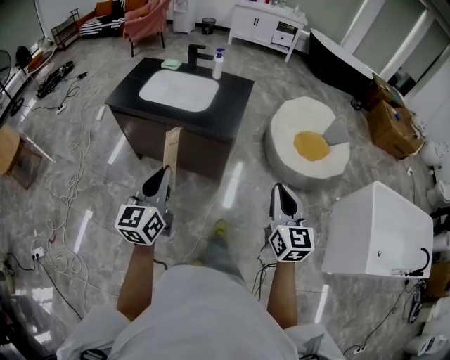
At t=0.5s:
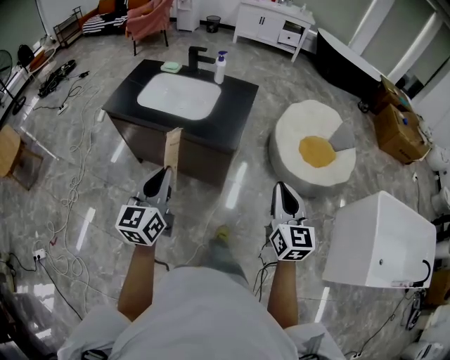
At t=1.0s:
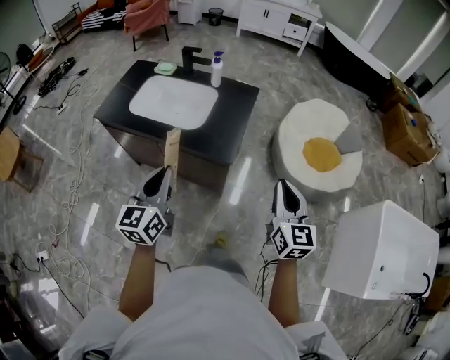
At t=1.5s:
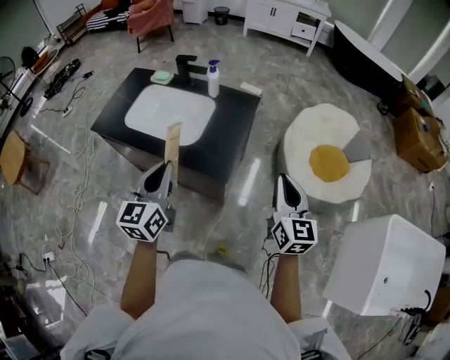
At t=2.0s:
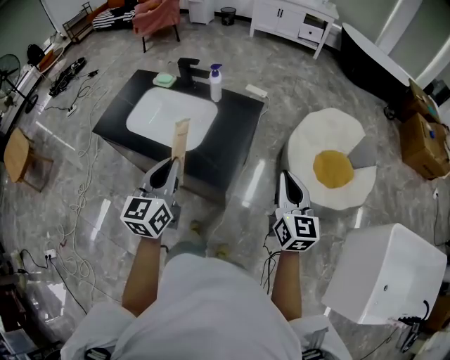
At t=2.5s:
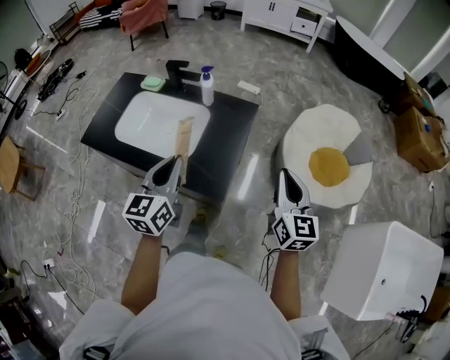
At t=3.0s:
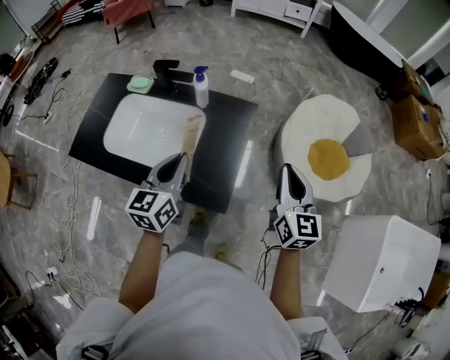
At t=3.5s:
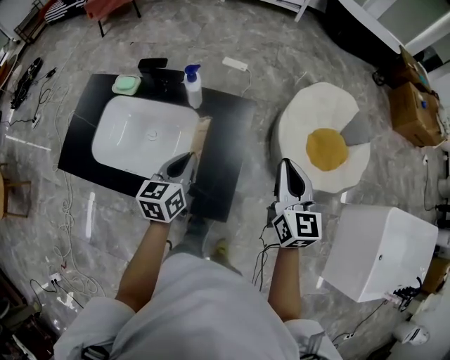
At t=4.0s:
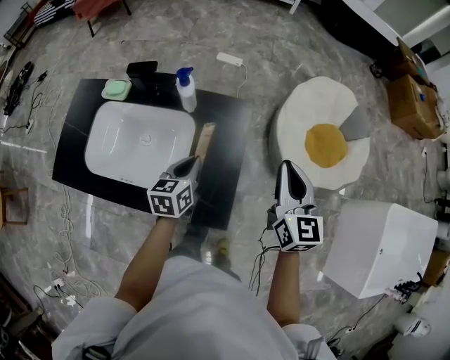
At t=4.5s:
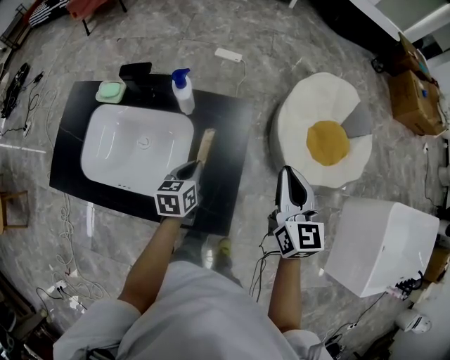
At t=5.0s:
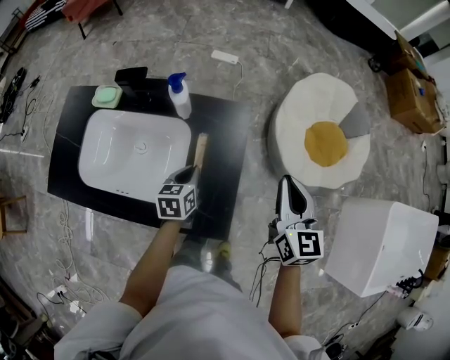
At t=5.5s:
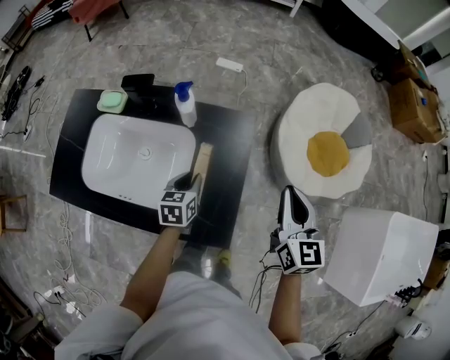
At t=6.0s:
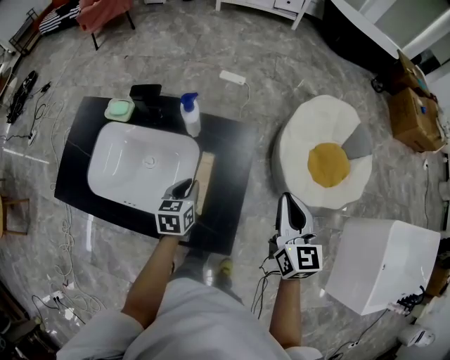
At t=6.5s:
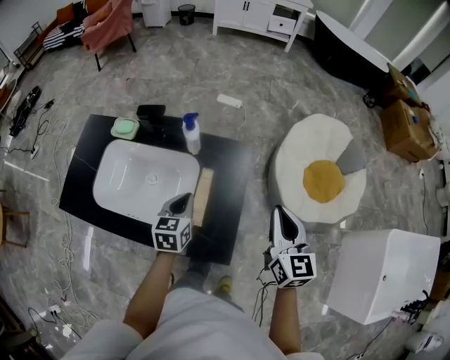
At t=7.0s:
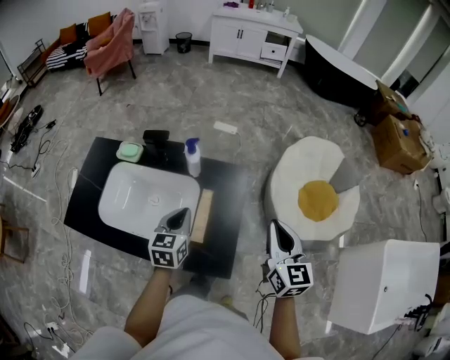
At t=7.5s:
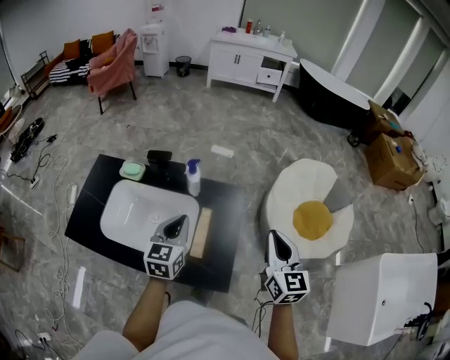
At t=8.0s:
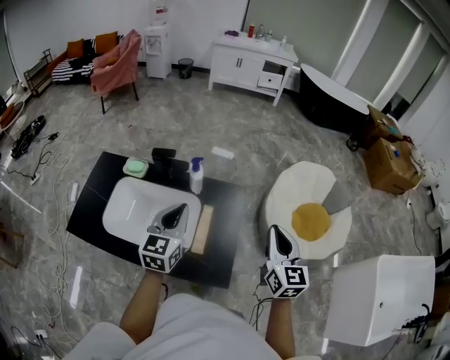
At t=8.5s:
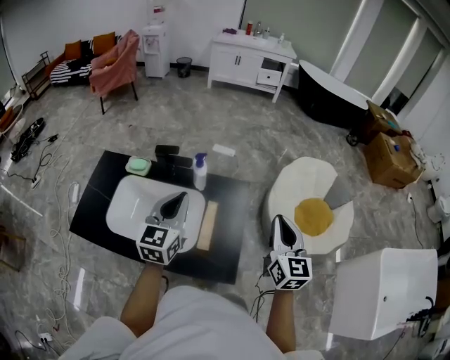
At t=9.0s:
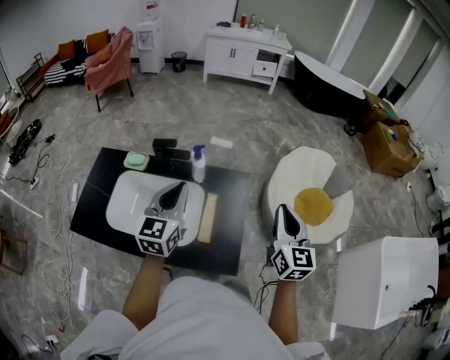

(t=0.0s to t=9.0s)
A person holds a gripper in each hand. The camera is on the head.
t=0.0s - t=2.0s: Both grippers move forward, approximately 40 cm.
t=2.0s - t=4.5s: The left gripper shifts roughly 40 cm forward and downward, and tilts its fingers about 30 degrees downward. The right gripper shifts some 25 cm forward.
t=4.5s - t=7.0s: The left gripper is displaced upward by roughly 15 cm, while the right gripper moves upward and backward, some 10 cm.
t=7.0s - t=9.0s: The left gripper shifts about 15 cm upward, and changes its angle by approximately 20 degrees. Meanwhile the right gripper travels upward by some 5 cm.

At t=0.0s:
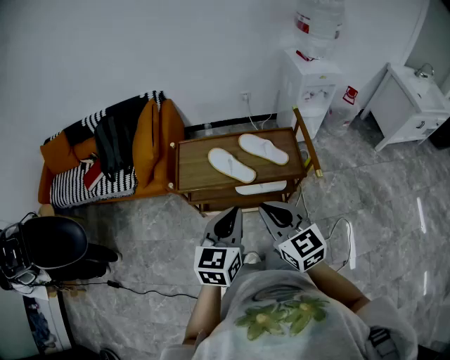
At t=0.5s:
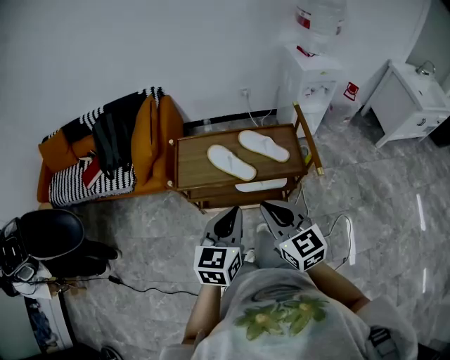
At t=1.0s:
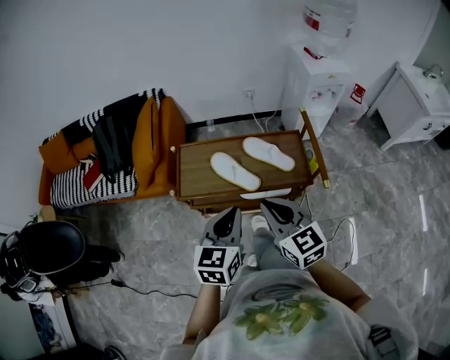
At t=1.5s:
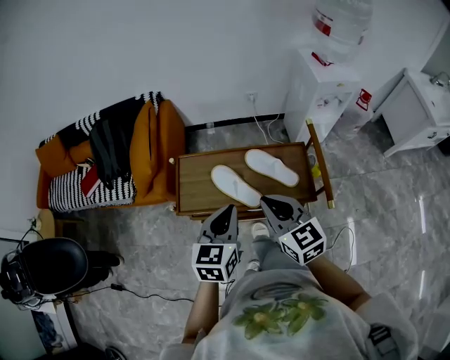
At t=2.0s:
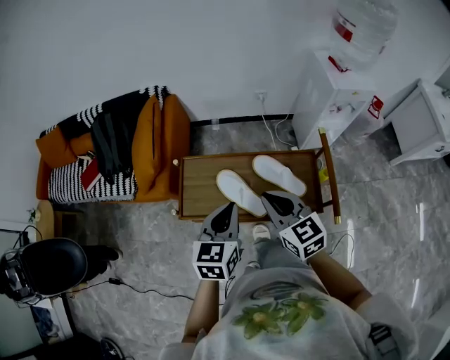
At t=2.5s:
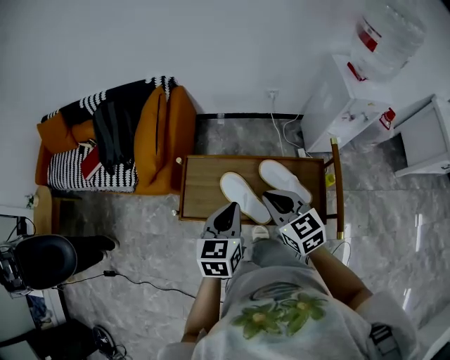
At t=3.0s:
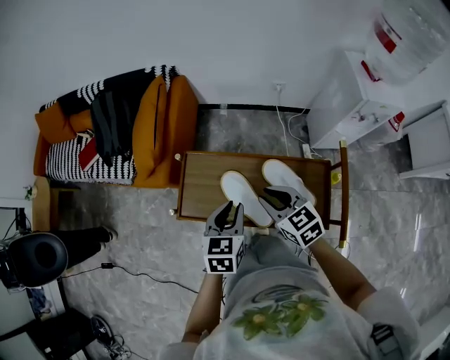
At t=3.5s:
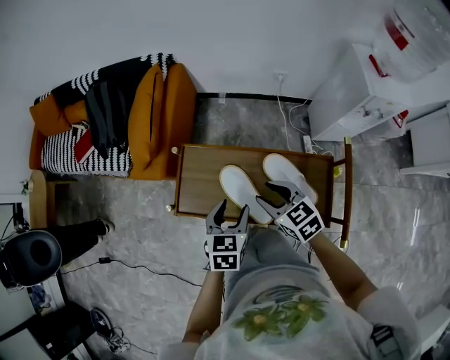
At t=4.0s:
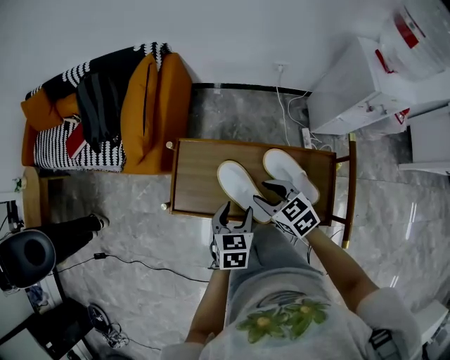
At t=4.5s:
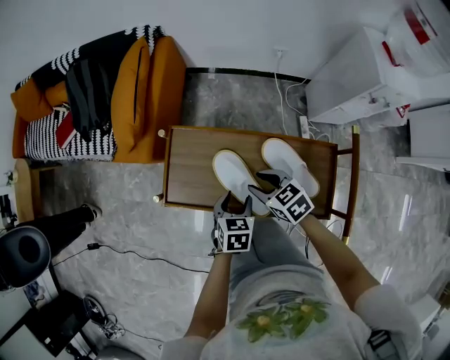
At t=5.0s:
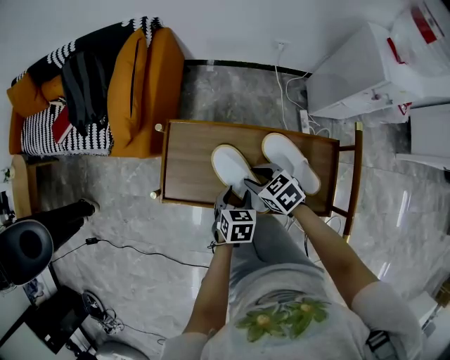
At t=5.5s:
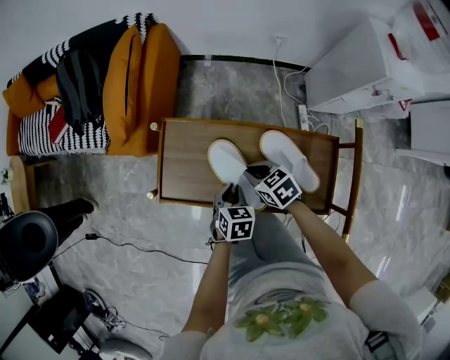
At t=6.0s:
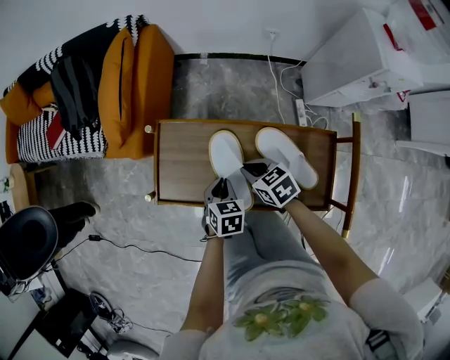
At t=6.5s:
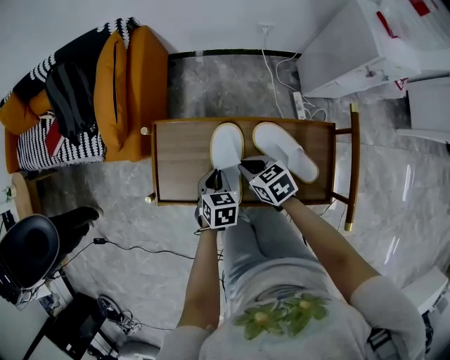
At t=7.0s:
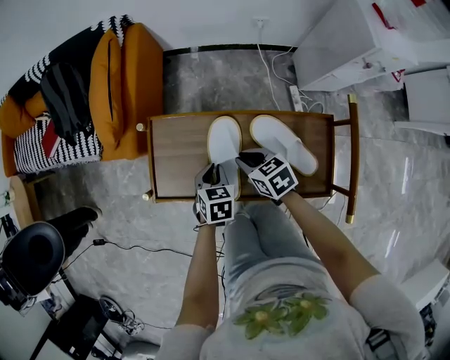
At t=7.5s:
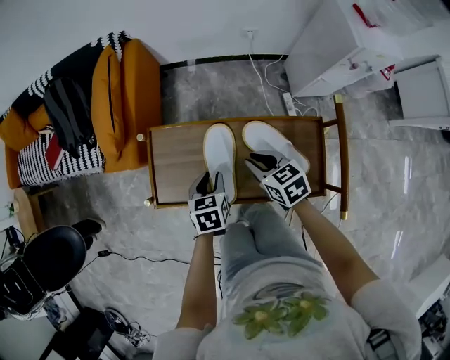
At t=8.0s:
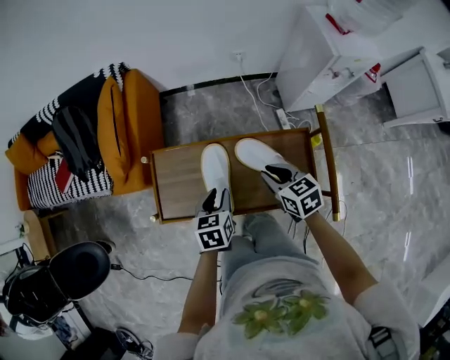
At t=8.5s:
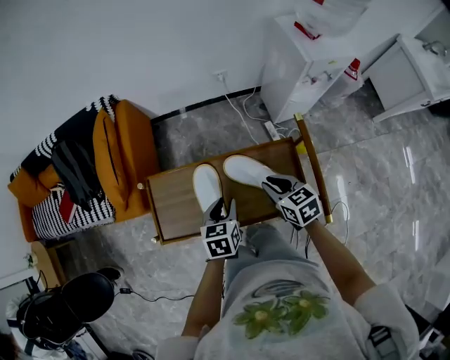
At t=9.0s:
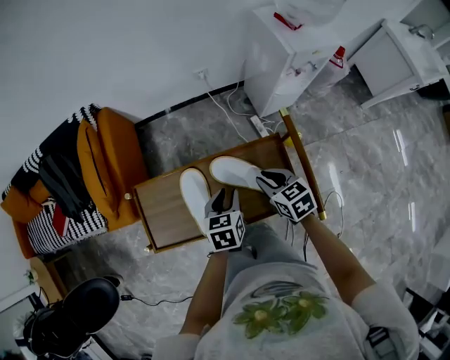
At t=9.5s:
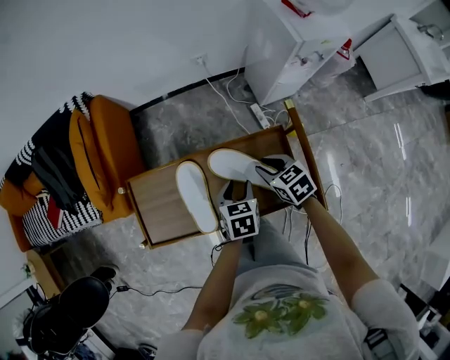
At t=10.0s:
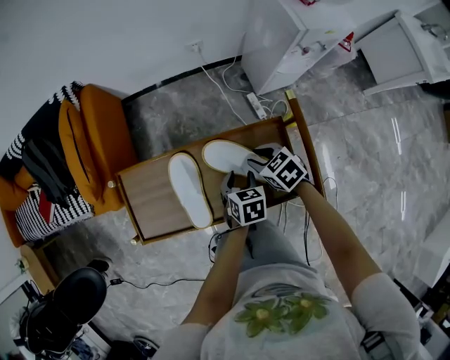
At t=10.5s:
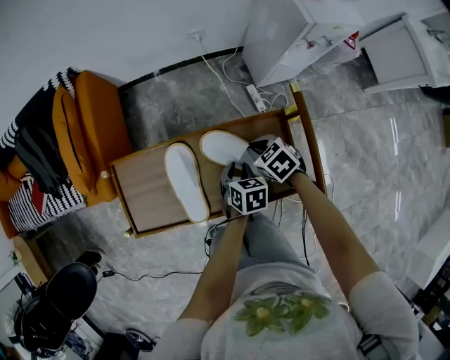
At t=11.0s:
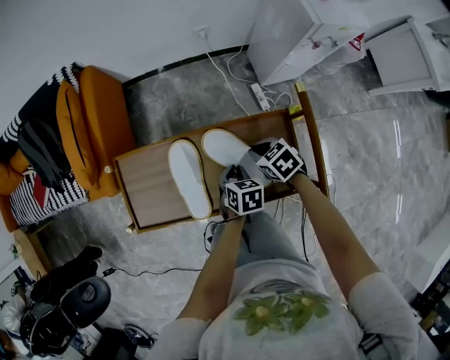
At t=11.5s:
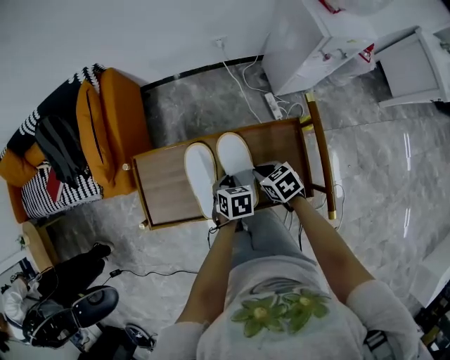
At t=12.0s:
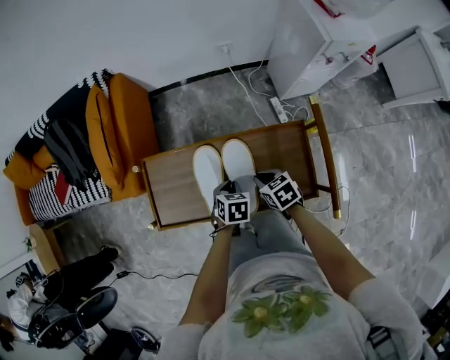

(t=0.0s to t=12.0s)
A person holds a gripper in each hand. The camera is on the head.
t=0.0s - t=2.0s: The two grippers go roughly 20 cm forward.
t=2.0s - t=4.0s: Both grippers move downward, about 20 cm. The left gripper changes its angle by approximately 20 degrees, and opens up. The right gripper swivels approximately 30 degrees, and opens up.
t=4.0s - t=6.0s: Both grippers travel together downward, about 10 cm. The left gripper closes. The right gripper closes up.
t=6.0s - t=8.0s: The left gripper moves upward, some 10 cm, and opens its fingers. The right gripper heads to the right and upward, covering some 15 cm, and changes its angle by approximately 20 degrees.
t=8.0s - t=10.0s: The left gripper travels to the right and downward by about 20 cm. Meanwhile the right gripper shifts about 10 cm downward and to the right.
t=10.0s - t=12.0s: The grippers both shift to the left by approximately 10 cm. The left gripper closes up. Meanwhile the right gripper closes up.

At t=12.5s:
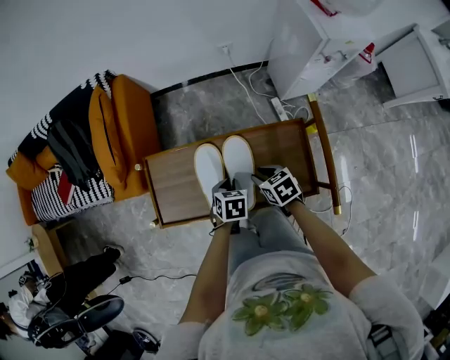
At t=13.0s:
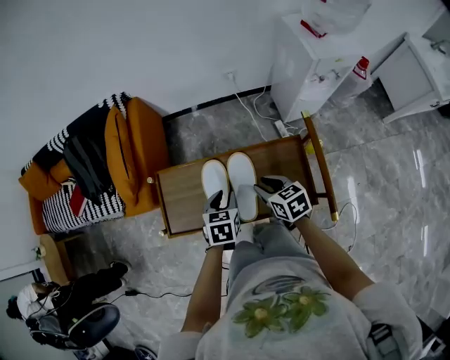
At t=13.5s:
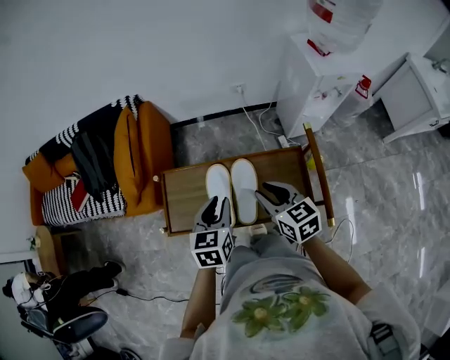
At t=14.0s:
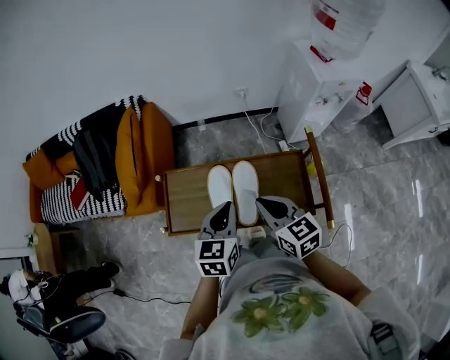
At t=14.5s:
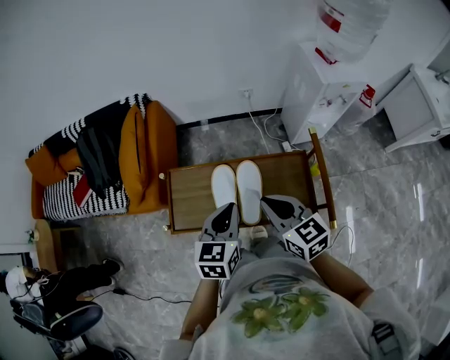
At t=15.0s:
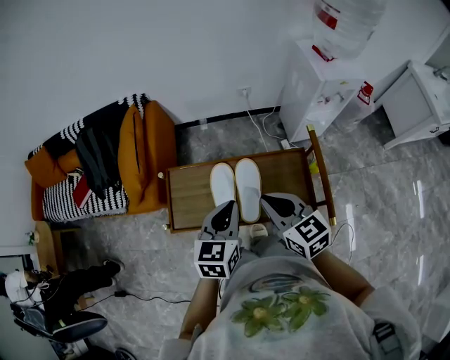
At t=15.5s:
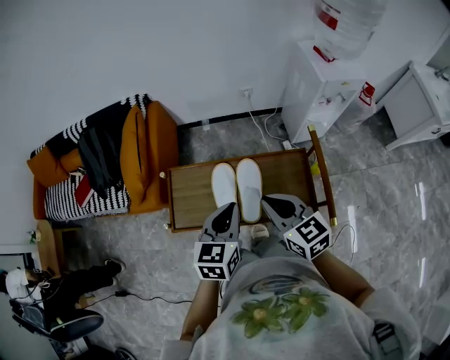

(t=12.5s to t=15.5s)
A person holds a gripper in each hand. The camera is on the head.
t=12.5s - t=14.0s: Both grippers travel together upward, about 25 cm. The right gripper angles its fingers upward, by about 30 degrees, and closes, while the left gripper tips its fingers upward by some 40 degrees.
t=14.0s - t=15.5s: The grippers make only small movements.

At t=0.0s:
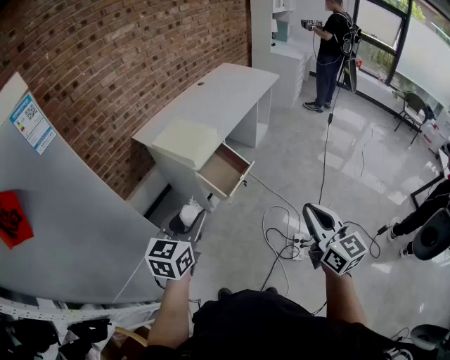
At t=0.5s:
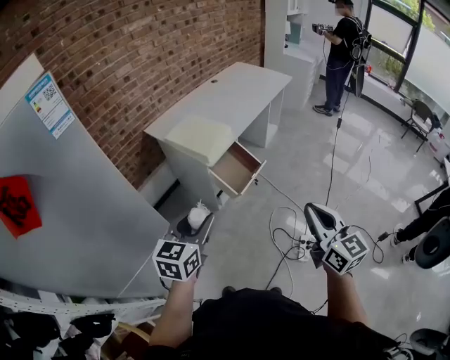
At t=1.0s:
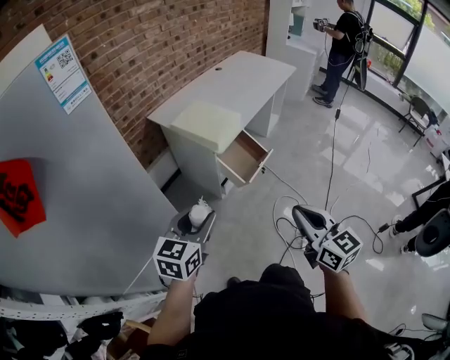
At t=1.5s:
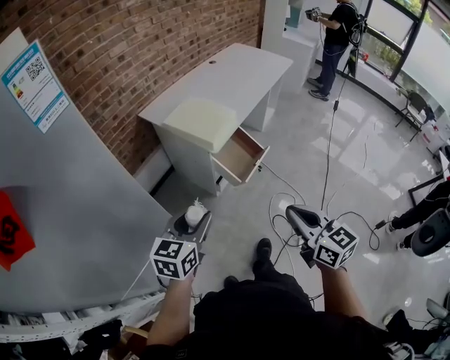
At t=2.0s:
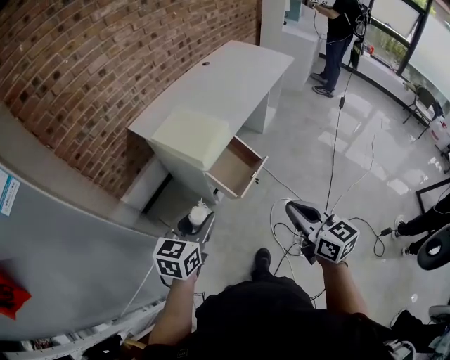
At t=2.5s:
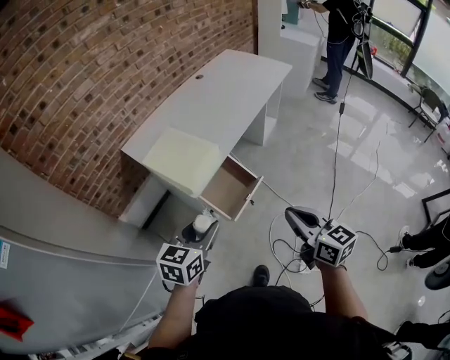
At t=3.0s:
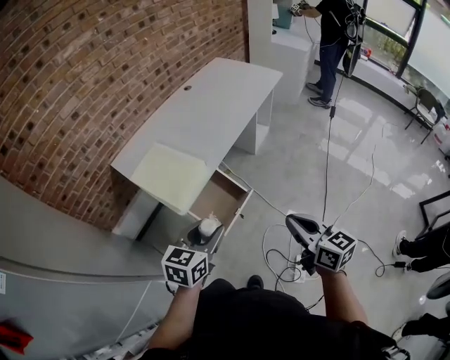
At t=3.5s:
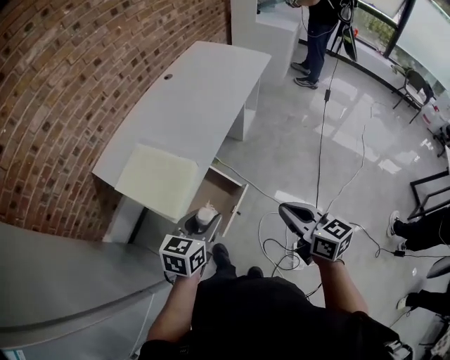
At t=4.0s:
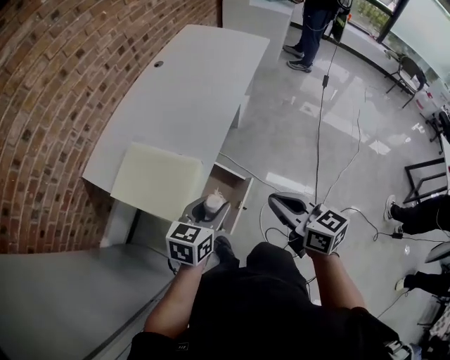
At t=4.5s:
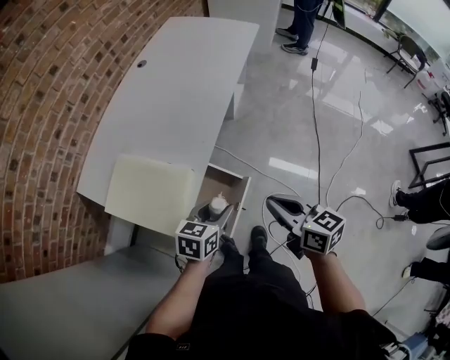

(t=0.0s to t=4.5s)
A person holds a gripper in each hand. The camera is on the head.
t=0.0s - t=2.0s: The right gripper shifts approximately 20 cm forward, to the left and downward, while the left gripper is displaced forward and downward by roughly 15 cm.
t=2.0s - t=4.5s: The left gripper travels forward, to the right and downward by approximately 40 cm, and rotates about 30 degrees. Meanwhile the right gripper heads forward, covering approximately 30 cm.
